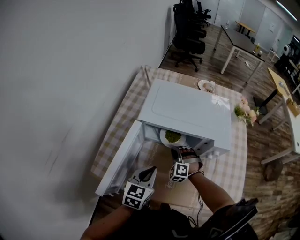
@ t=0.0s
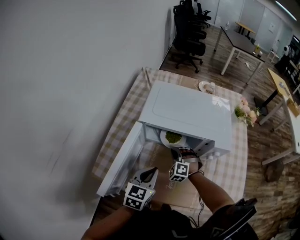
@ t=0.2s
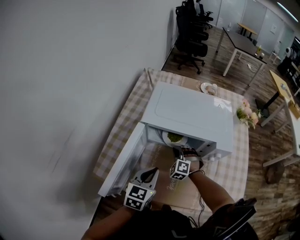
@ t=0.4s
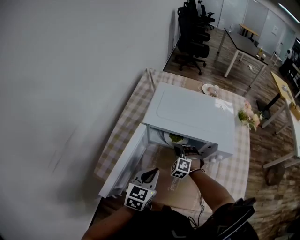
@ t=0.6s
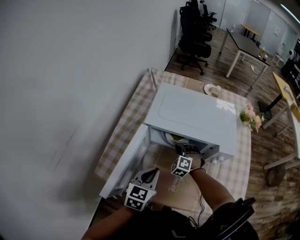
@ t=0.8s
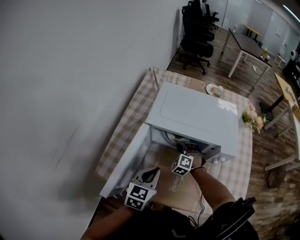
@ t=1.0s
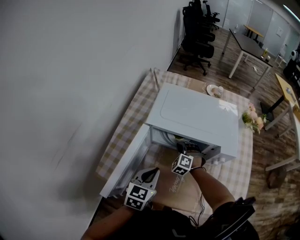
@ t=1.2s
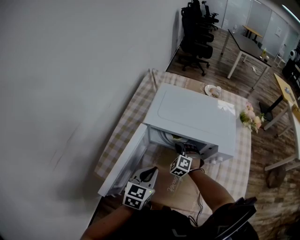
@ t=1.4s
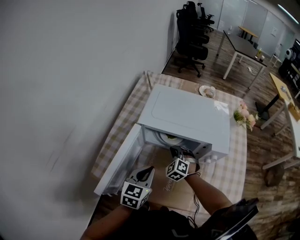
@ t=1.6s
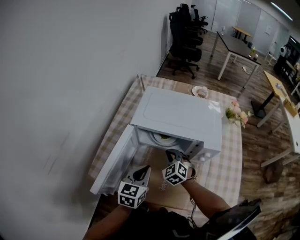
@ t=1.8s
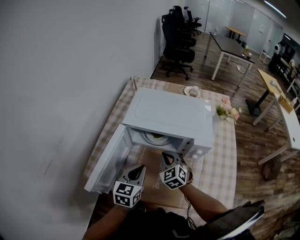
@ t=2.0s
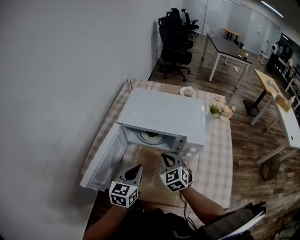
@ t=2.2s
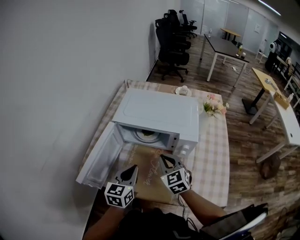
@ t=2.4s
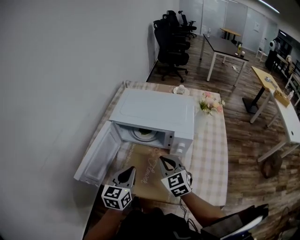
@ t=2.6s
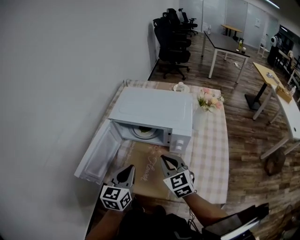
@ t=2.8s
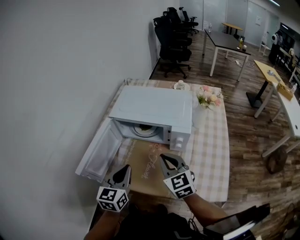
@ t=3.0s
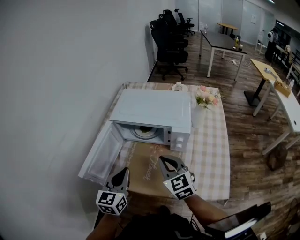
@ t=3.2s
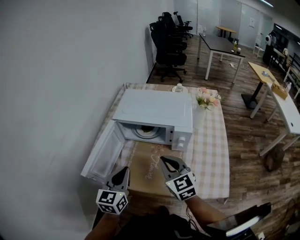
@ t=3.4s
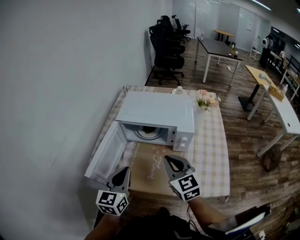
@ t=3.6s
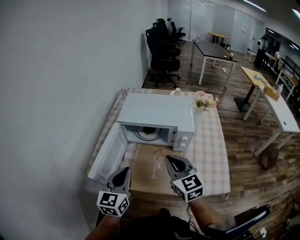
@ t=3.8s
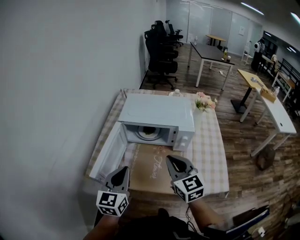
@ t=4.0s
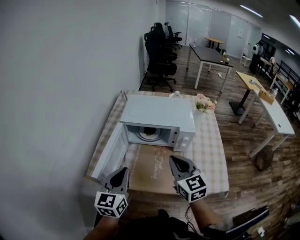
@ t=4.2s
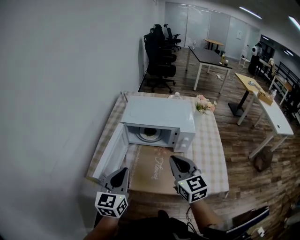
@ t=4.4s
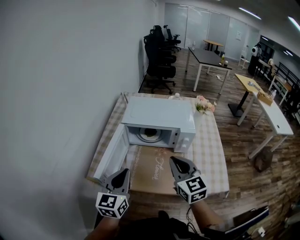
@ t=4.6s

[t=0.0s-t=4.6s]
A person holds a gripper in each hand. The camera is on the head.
t=0.0s to t=1.6s: The grippers make only small movements.
t=1.6s to t=3.0s: The right gripper travels upward, backward and to the right by roughly 30 cm, and swivels about 50 degrees. Meanwhile the left gripper heads backward, upward and to the right, covering approximately 15 cm.
t=3.0s to t=4.6s: The left gripper goes some 10 cm to the left and upward; the right gripper is displaced upward, backward and to the left by some 10 cm.

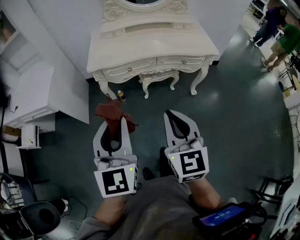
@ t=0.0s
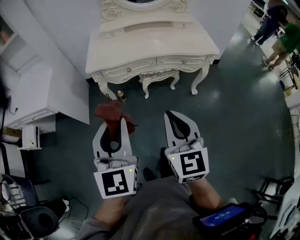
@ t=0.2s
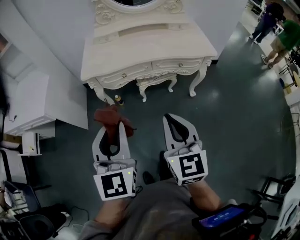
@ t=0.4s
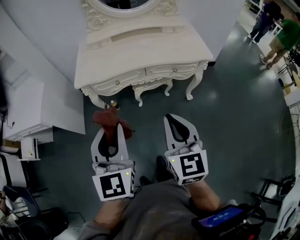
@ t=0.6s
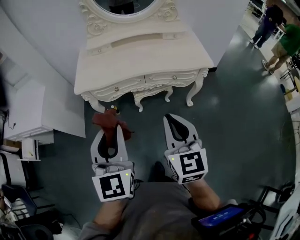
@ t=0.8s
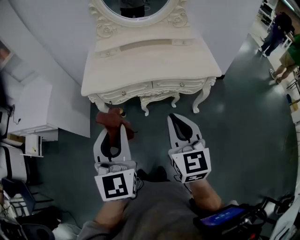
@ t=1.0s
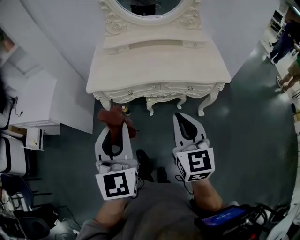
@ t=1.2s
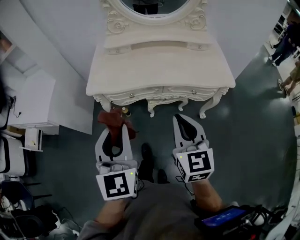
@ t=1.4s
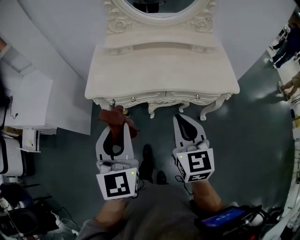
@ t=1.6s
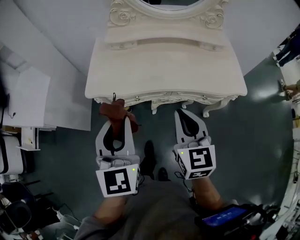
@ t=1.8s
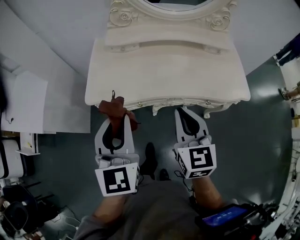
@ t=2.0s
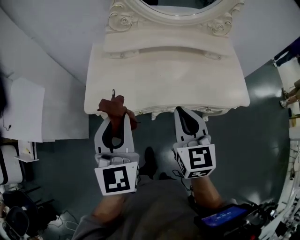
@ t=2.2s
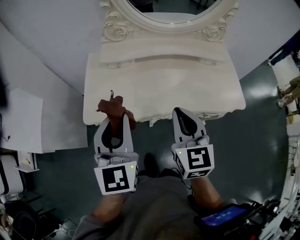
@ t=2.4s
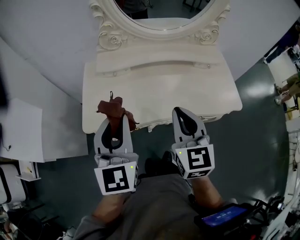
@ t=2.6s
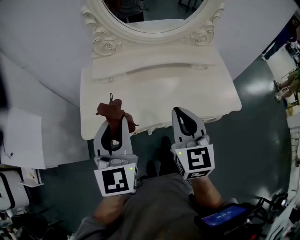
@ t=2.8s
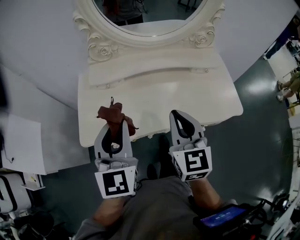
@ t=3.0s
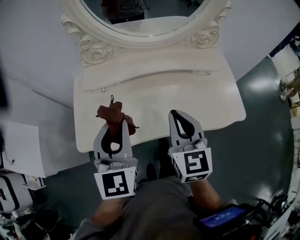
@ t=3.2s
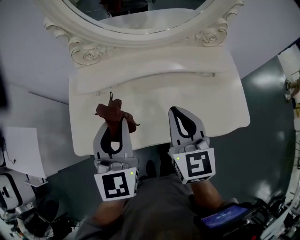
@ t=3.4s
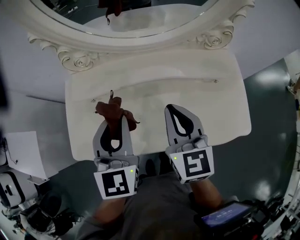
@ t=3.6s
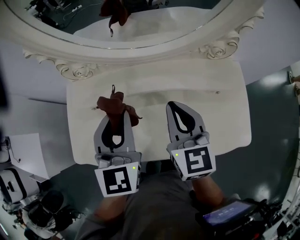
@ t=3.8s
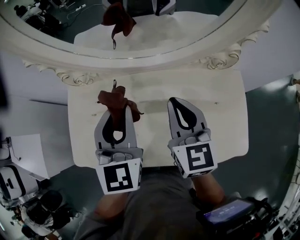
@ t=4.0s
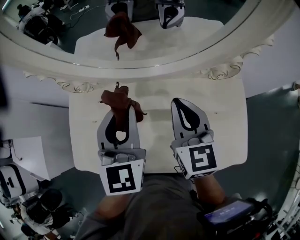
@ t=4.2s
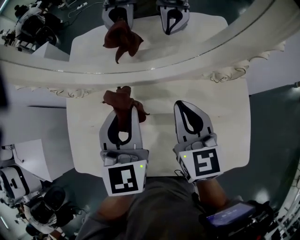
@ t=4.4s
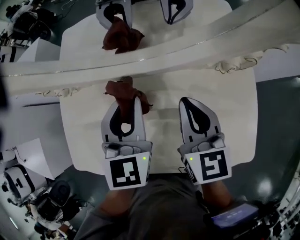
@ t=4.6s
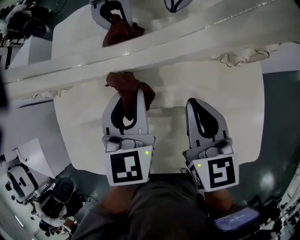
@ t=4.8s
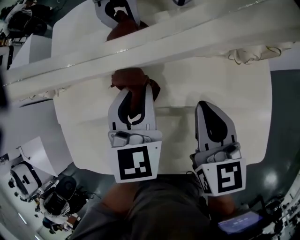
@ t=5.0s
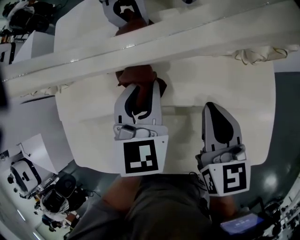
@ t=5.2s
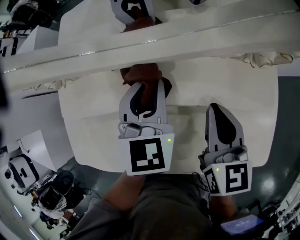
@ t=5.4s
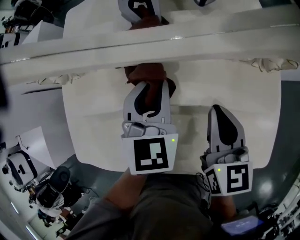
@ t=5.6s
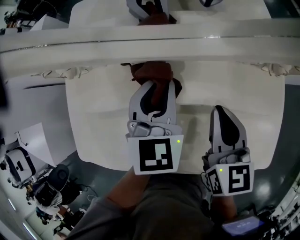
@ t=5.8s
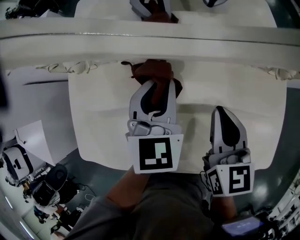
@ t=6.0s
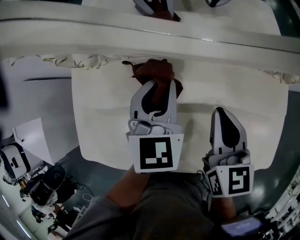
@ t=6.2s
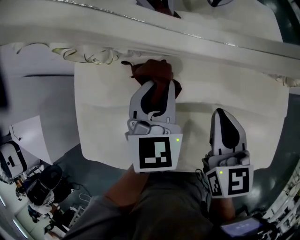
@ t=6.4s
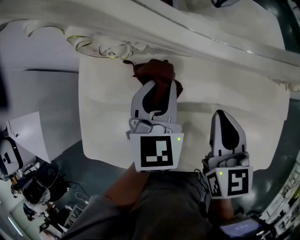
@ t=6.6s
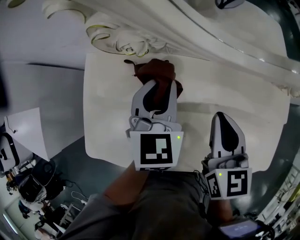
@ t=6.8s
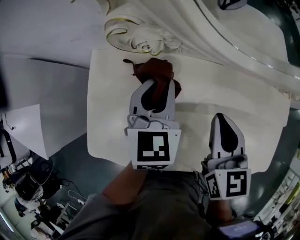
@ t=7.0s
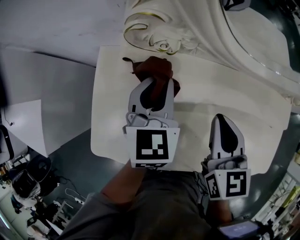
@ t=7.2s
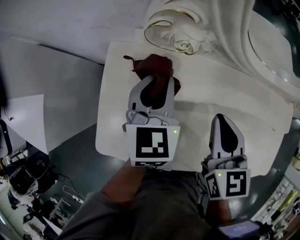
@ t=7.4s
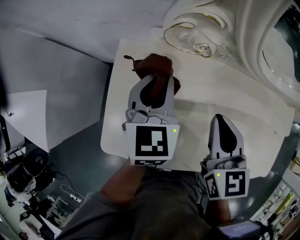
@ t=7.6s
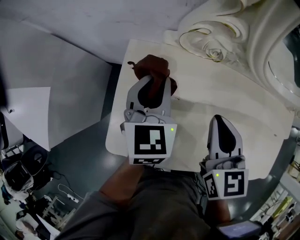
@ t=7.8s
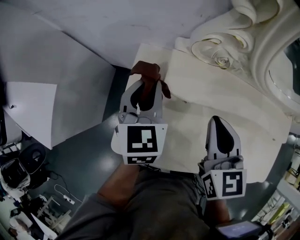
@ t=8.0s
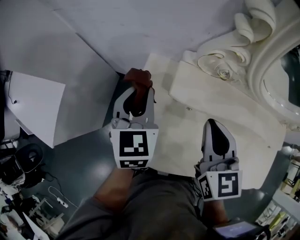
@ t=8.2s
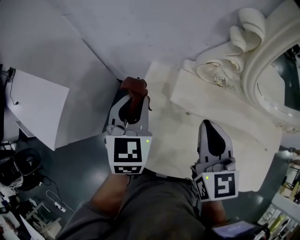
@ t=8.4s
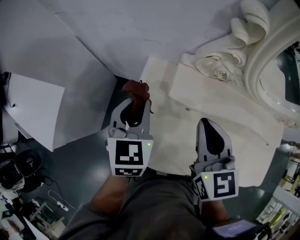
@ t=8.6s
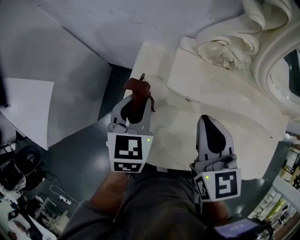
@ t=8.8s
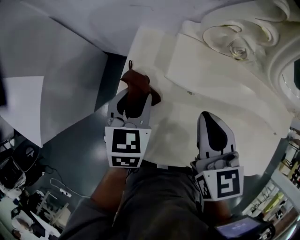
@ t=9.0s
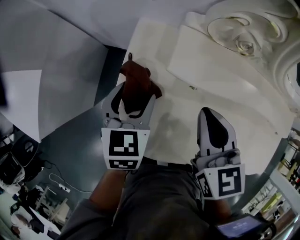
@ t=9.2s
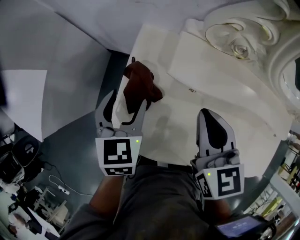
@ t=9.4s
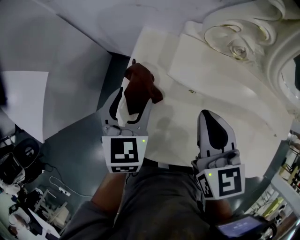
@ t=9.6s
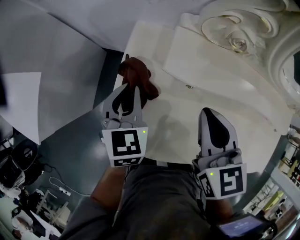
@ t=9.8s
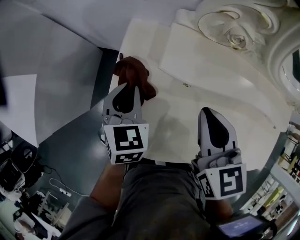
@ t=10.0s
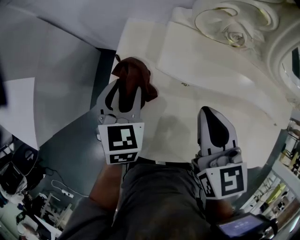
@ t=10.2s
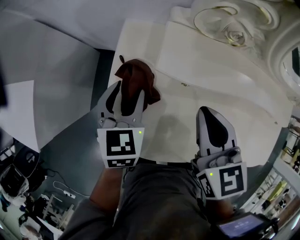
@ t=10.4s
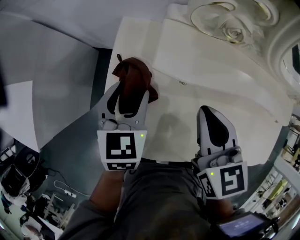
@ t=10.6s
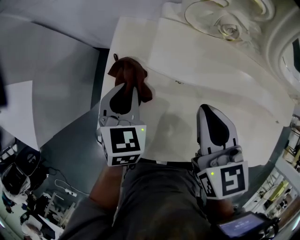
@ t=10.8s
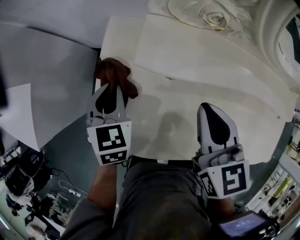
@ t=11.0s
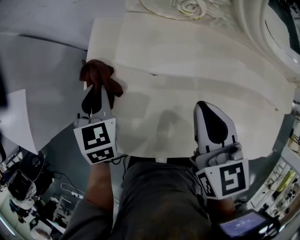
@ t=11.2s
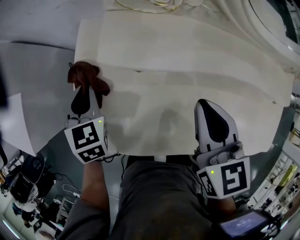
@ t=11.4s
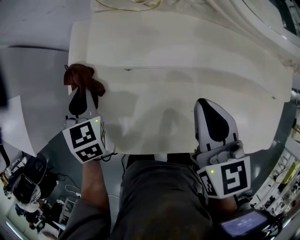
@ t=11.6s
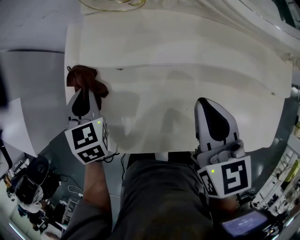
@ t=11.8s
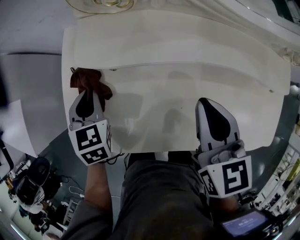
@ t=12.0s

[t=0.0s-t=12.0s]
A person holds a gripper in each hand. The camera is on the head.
t=0.0s to t=1.6s: The grippers both shift forward by about 25 cm.
t=1.6s to t=3.0s: The two grippers go about 25 cm forward.
t=3.0s to t=4.4s: Both grippers move forward and to the right, about 35 cm.
t=4.4s to t=6.0s: Both grippers travel together downward, roughly 10 cm.
t=6.0s to t=7.6s: Both grippers travel together to the left, approximately 25 cm.
t=7.6s to t=9.0s: The right gripper moves to the left, roughly 10 cm; the left gripper heads to the left, downward and backward, covering approximately 15 cm, and opens.
t=9.0s to t=10.4s: The left gripper closes and opens again.
t=10.4s to t=12.0s: The left gripper travels to the right by some 5 cm, and closes, while the right gripper goes about 20 cm to the right and backward.

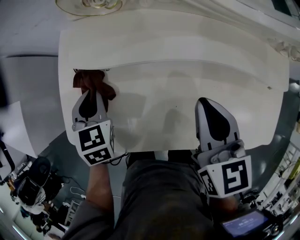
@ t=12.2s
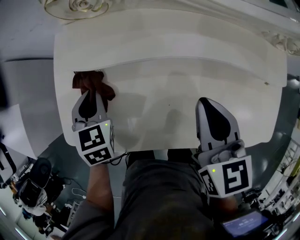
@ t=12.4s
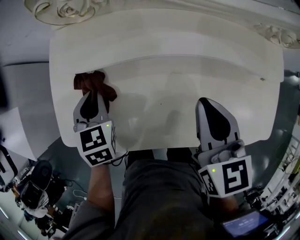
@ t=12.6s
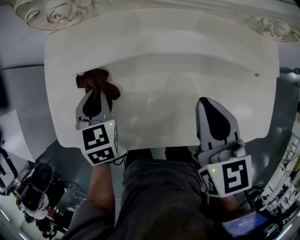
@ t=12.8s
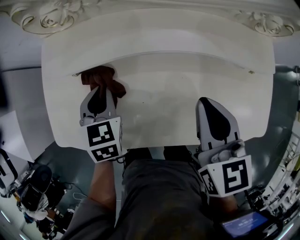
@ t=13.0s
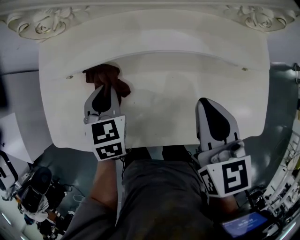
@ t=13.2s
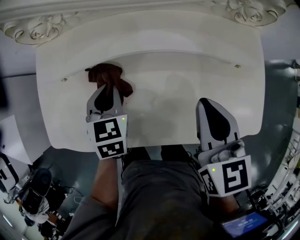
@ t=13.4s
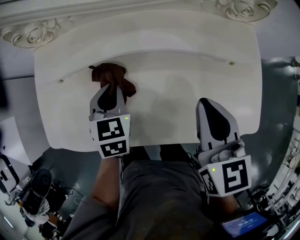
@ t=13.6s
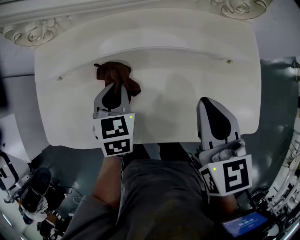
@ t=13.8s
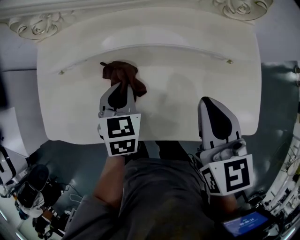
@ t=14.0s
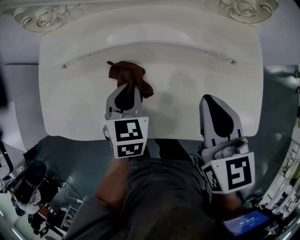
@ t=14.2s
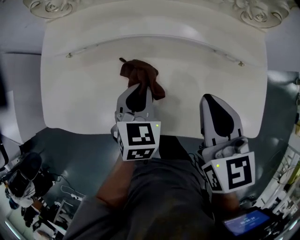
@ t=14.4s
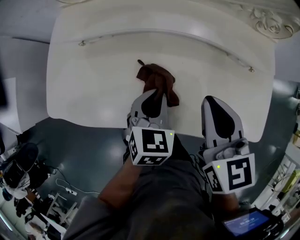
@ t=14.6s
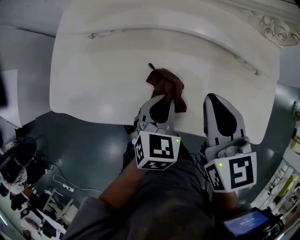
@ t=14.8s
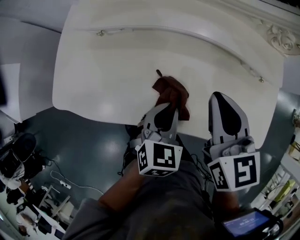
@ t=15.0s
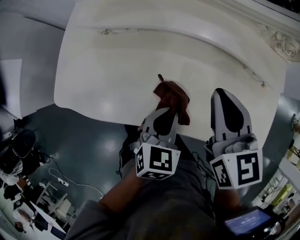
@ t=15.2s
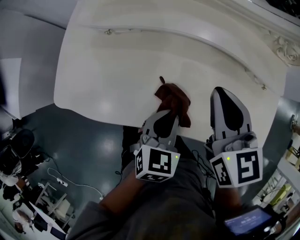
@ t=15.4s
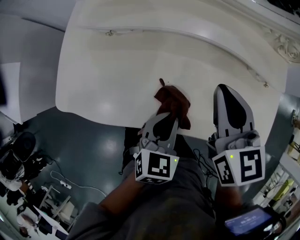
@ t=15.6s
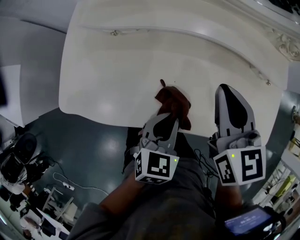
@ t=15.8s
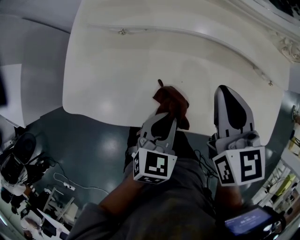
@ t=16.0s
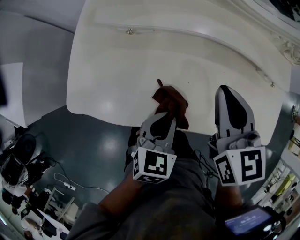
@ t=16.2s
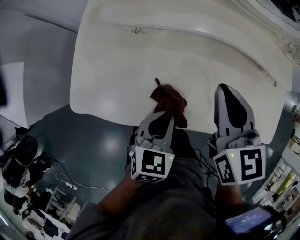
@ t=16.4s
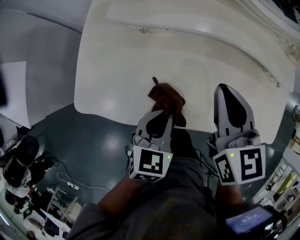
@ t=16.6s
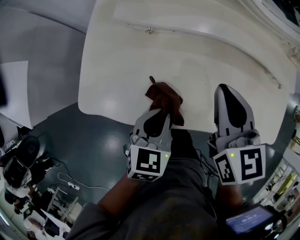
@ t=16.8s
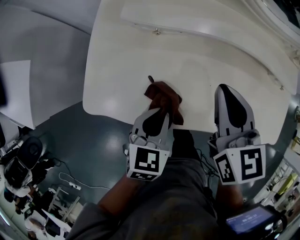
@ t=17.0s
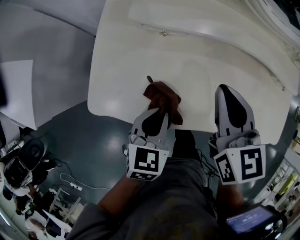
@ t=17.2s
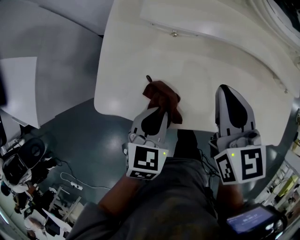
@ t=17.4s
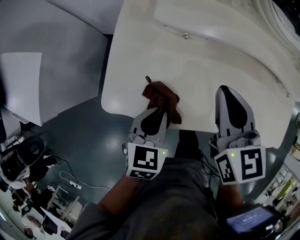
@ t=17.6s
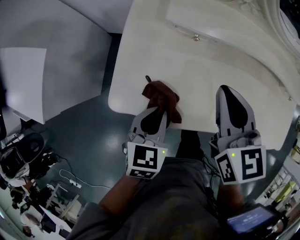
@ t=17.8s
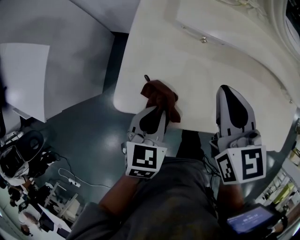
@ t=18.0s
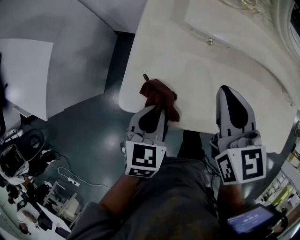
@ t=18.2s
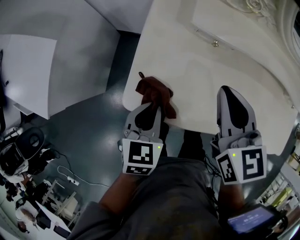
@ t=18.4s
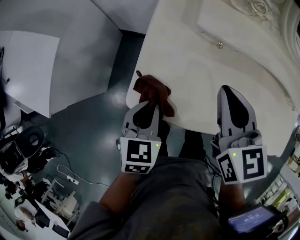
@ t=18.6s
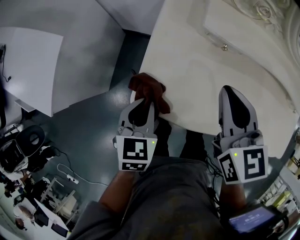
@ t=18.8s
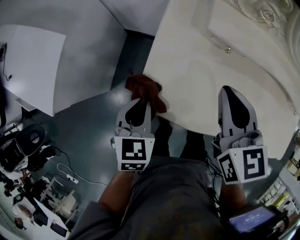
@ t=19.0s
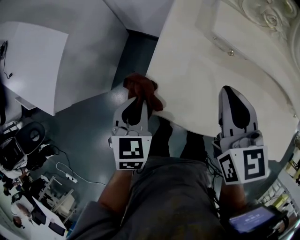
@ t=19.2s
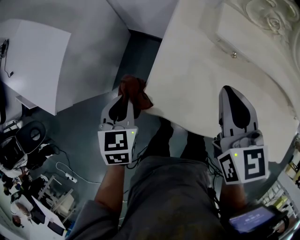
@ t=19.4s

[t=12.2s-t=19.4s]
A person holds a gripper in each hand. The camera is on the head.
t=12.2s to t=13.6s: The left gripper is displaced to the right by roughly 25 cm. Meanwhile the right gripper moves to the right and backward, some 20 cm.
t=13.6s to t=15.0s: The right gripper heads to the left, covering roughly 10 cm, while the left gripper moves backward, some 15 cm.
t=15.0s to t=16.6s: Both grippers move to the left, approximately 15 cm.
t=16.6s to t=18.0s: Both grippers travel together to the left, about 15 cm.
t=18.0s to t=19.4s: The right gripper shifts about 10 cm to the left. The left gripper travels to the left by approximately 20 cm, and swivels about 20 degrees.
